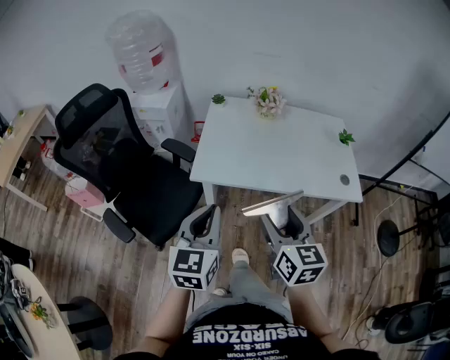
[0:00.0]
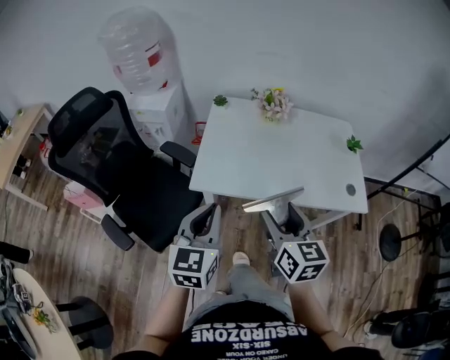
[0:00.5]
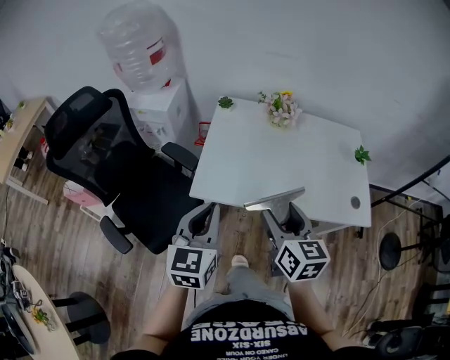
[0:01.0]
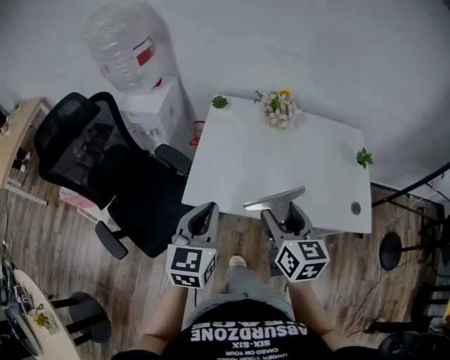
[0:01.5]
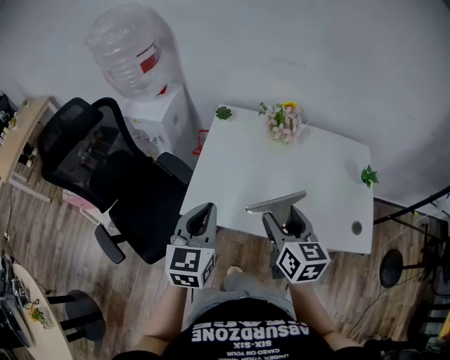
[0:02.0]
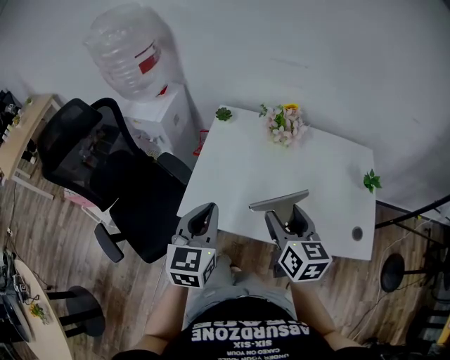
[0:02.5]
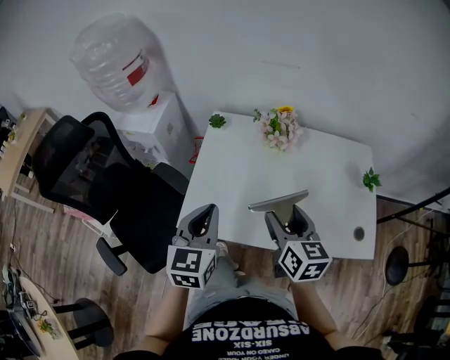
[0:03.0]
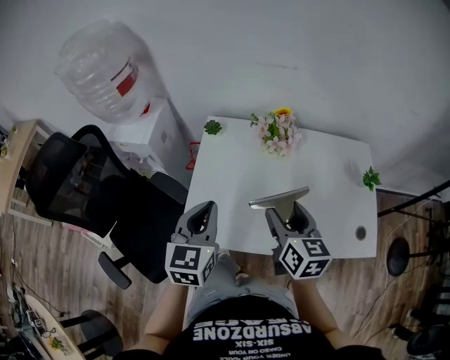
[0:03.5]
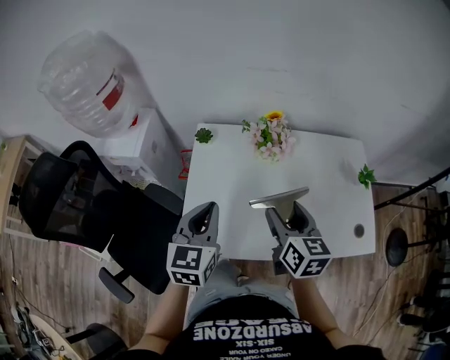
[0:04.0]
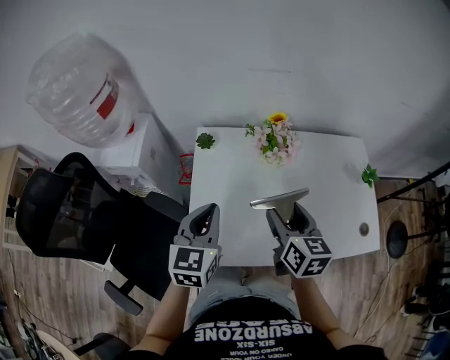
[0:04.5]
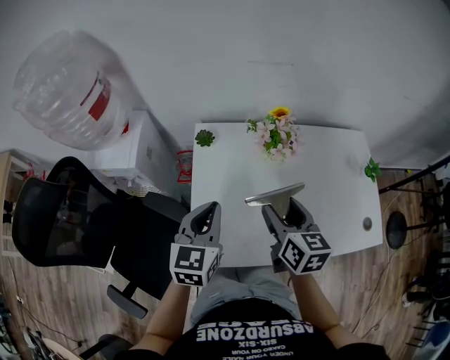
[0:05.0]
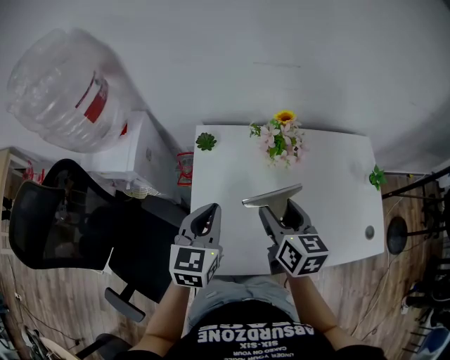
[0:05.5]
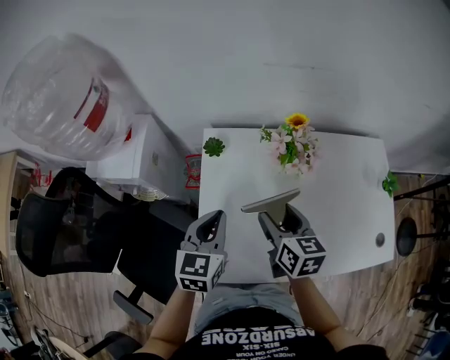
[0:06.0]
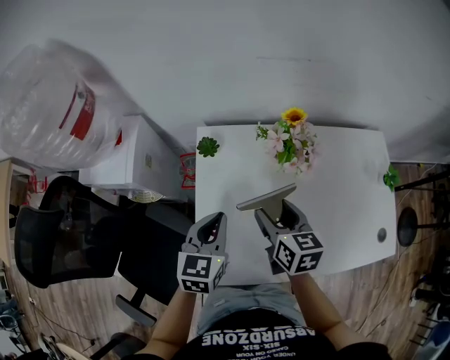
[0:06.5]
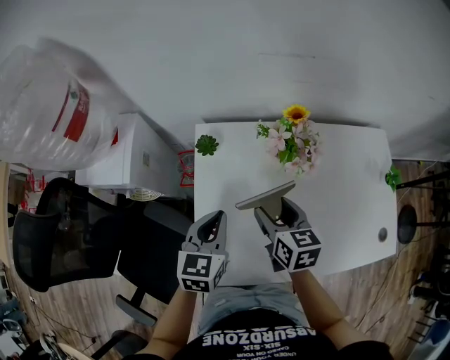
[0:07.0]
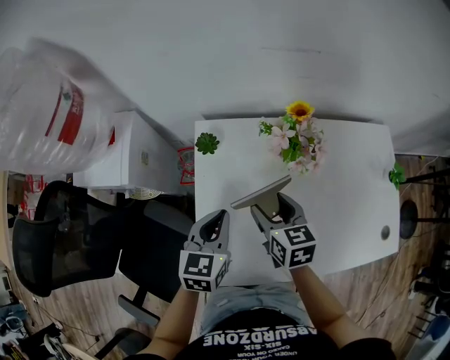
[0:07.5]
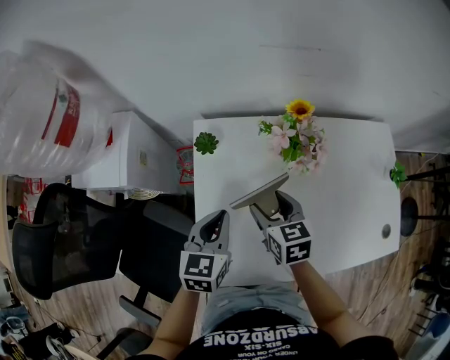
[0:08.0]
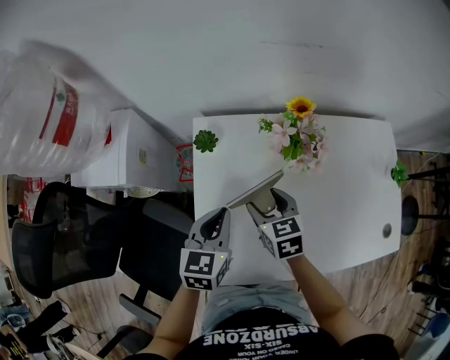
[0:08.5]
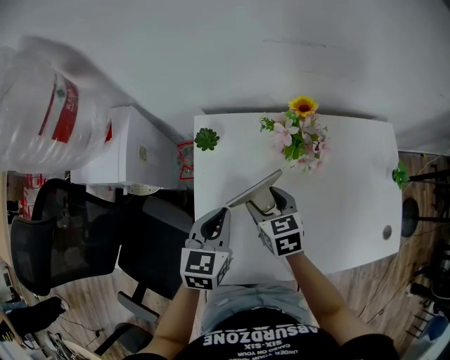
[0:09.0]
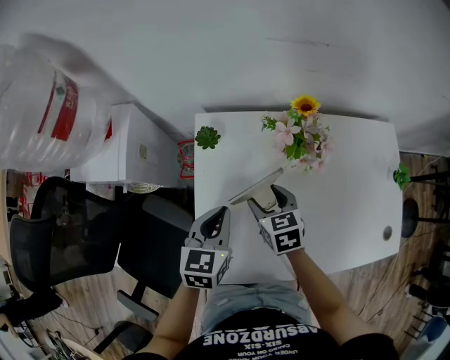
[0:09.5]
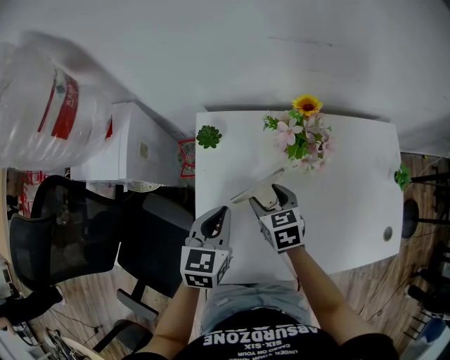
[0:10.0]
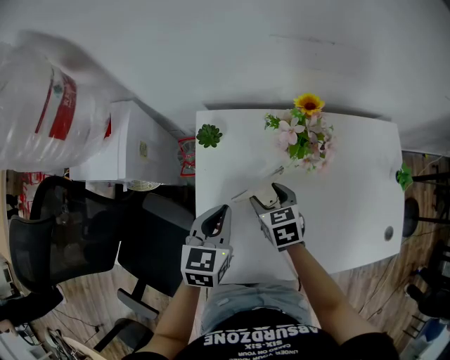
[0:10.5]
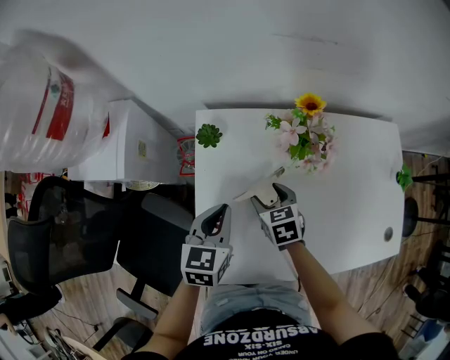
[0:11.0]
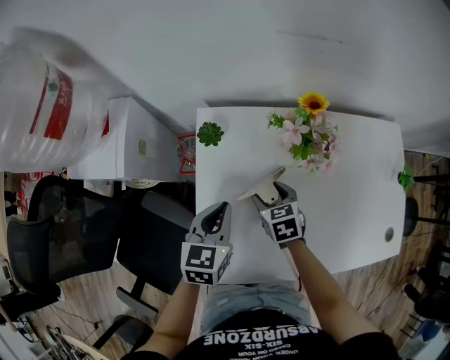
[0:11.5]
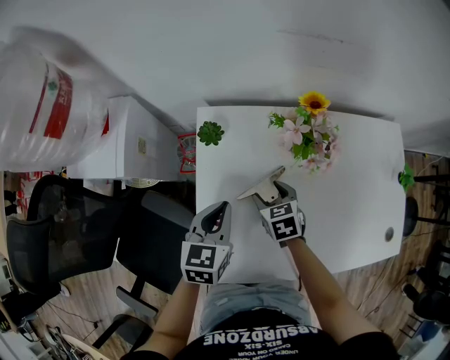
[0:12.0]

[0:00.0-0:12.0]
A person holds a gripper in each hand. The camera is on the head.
0:00.0 to 0:02.0: Both grippers move forward, approximately 25 cm.
0:02.0 to 0:04.0: Both grippers move forward, approximately 15 cm.
0:04.0 to 0:06.0: The right gripper travels forward, to the left and downward by approximately 15 cm. Meanwhile the left gripper heads forward, downward and to the left, covering approximately 15 cm.
0:06.0 to 0:08.0: The right gripper is displaced downward and forward by approximately 10 cm. The left gripper goes approximately 5 cm downward.
0:08.0 to 0:10.0: The right gripper heads downward, covering roughly 5 cm.
0:10.0 to 0:12.0: The right gripper travels downward by some 5 cm.

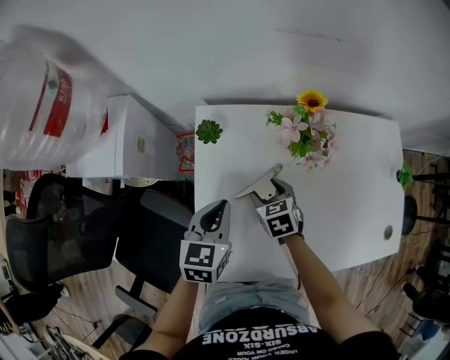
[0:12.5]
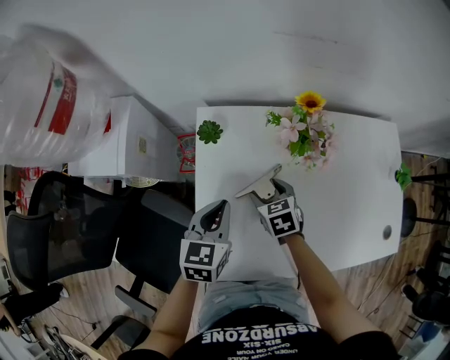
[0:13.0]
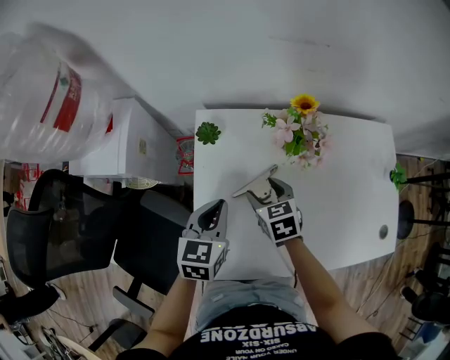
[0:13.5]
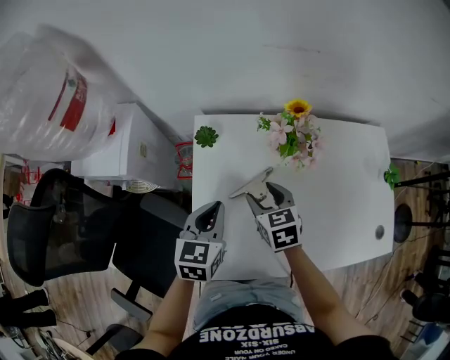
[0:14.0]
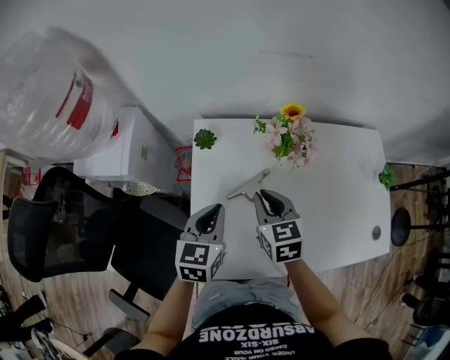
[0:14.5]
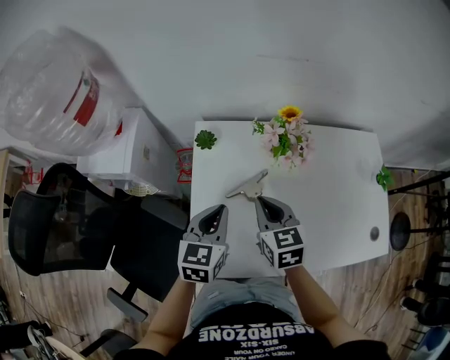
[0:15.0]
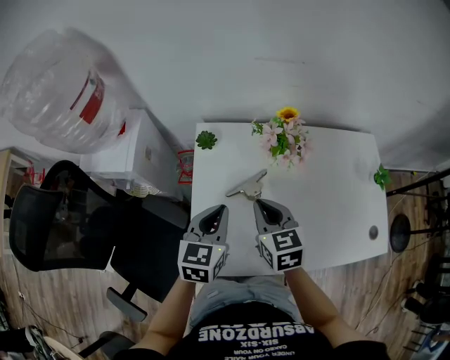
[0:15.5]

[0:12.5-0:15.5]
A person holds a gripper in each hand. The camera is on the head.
0:12.5 to 0:14.0: The right gripper shifts roughly 10 cm upward.
0:14.0 to 0:15.5: The right gripper travels upward and backward by approximately 10 cm, and closes. Meanwhile the left gripper ends up about 5 cm from where it was.

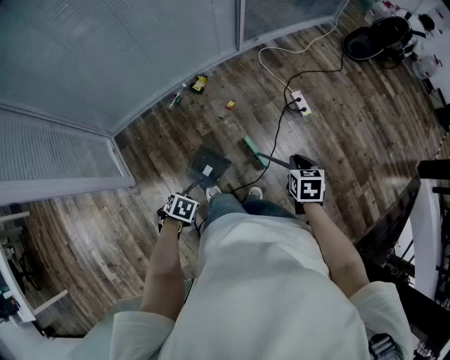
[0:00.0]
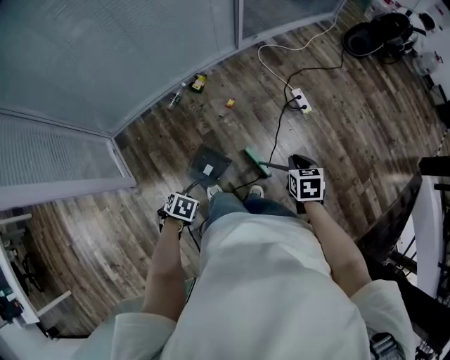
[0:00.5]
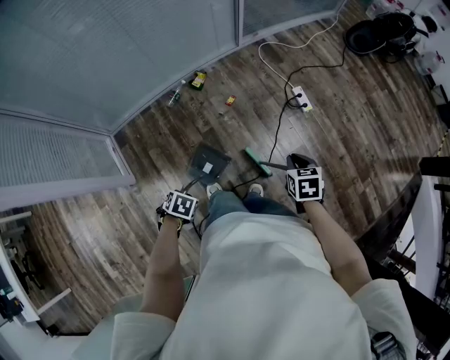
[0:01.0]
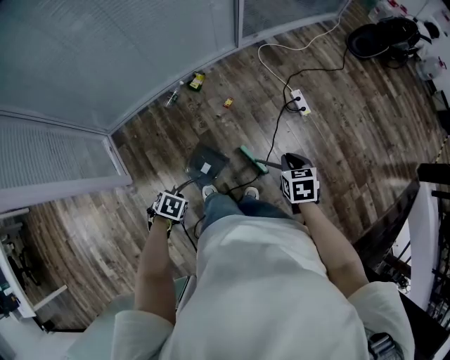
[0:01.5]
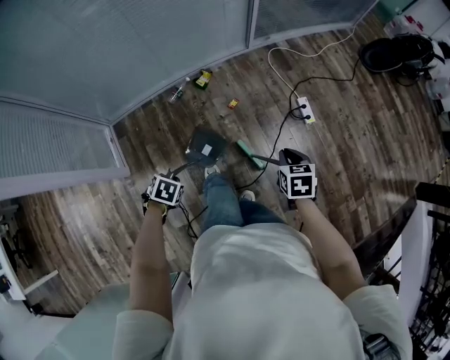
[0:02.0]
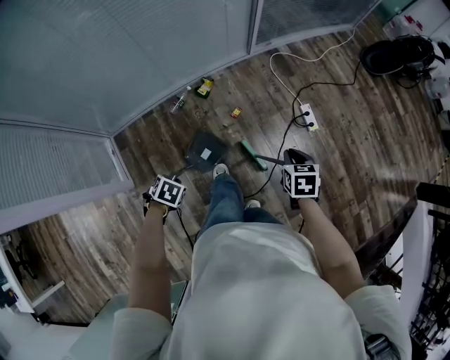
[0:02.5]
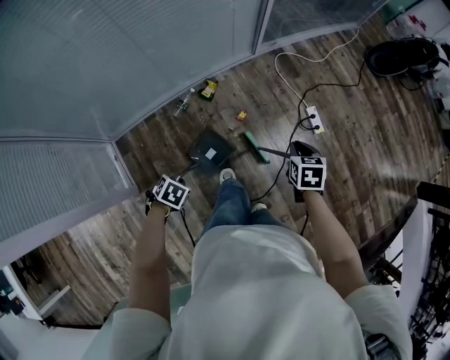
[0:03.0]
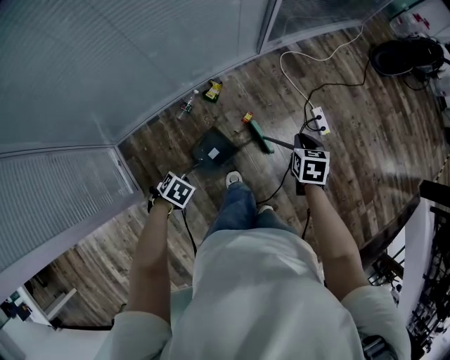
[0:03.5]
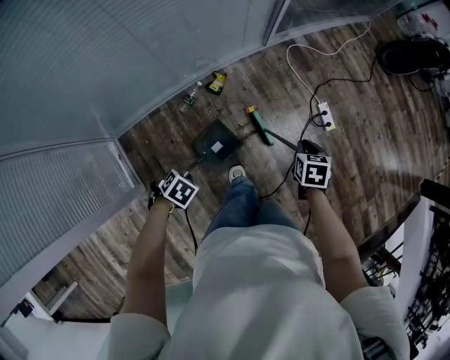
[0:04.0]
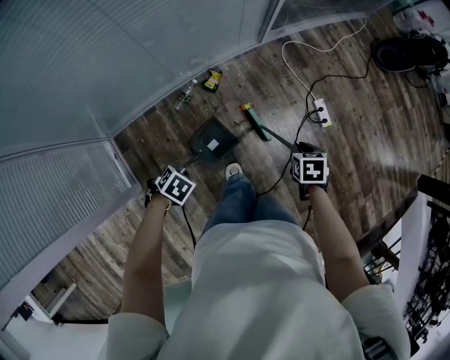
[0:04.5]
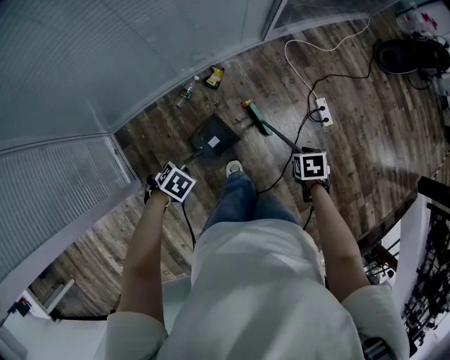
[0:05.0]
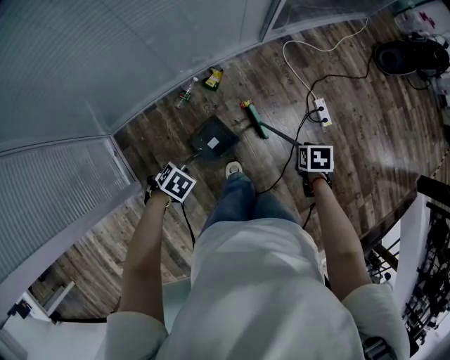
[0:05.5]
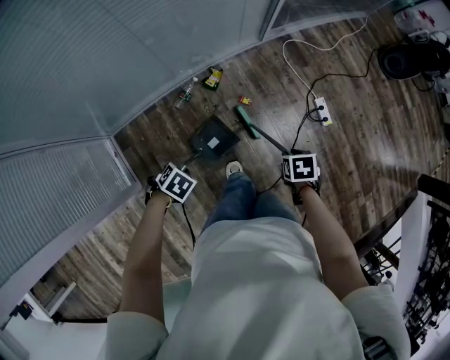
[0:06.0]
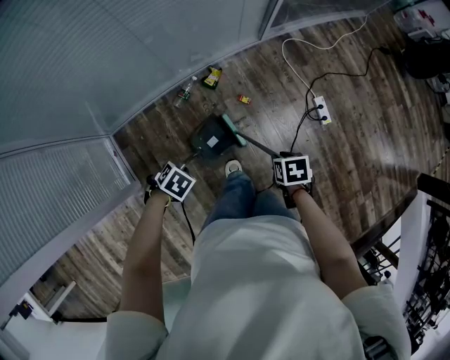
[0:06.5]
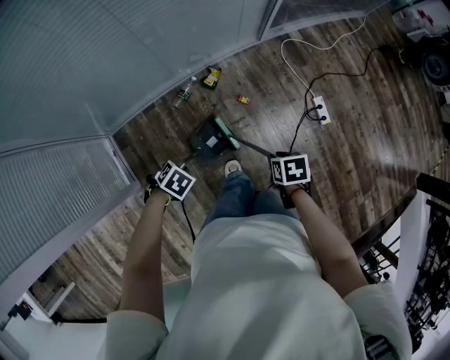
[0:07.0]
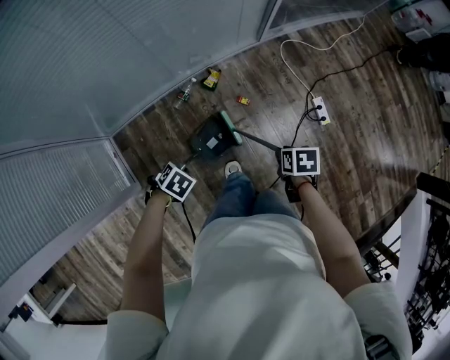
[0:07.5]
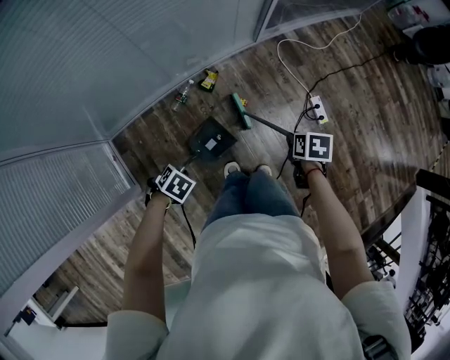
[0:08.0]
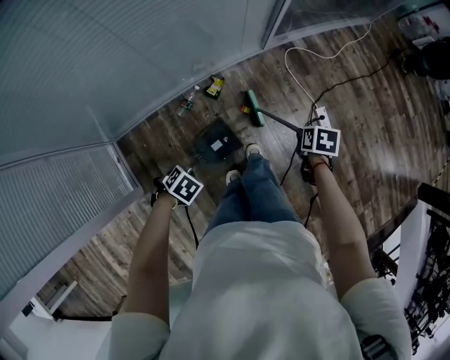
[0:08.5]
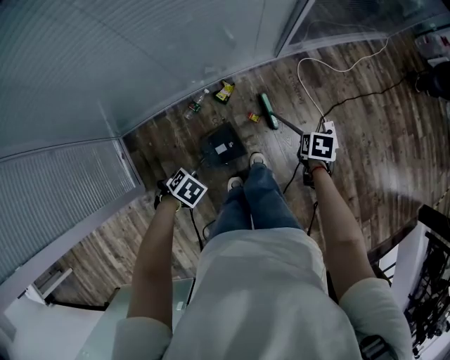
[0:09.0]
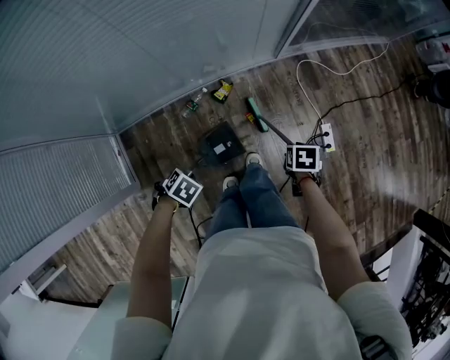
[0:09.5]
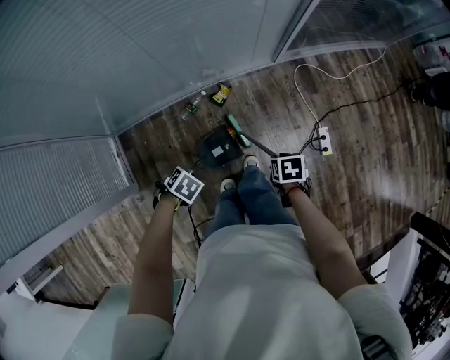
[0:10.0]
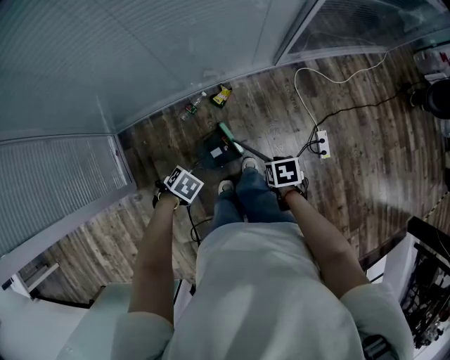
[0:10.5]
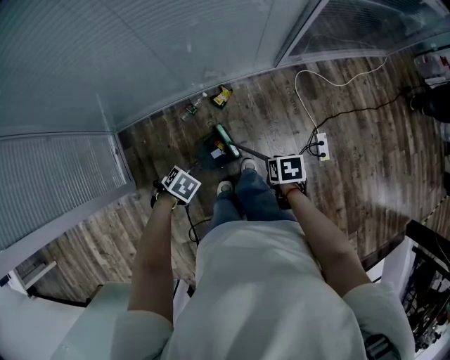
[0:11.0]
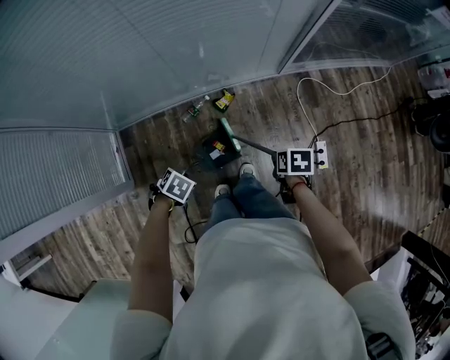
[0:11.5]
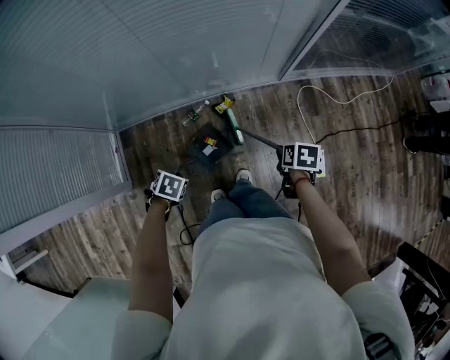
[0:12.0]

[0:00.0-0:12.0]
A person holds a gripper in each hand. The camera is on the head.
0:00.0 to 0:02.0: The right gripper ends up approximately 10 cm from where it was.
0:02.0 to 0:04.0: The right gripper ends up about 25 cm from where it was.
0:04.0 to 0:06.0: The right gripper changes place by roughly 5 cm.
0:06.0 to 0:08.0: The right gripper ends up some 10 cm from where it was.
0:10.0 to 0:12.0: The right gripper changes place by roughly 10 cm.
